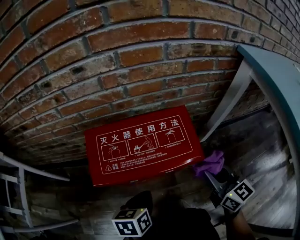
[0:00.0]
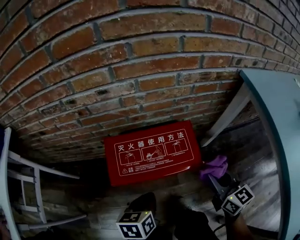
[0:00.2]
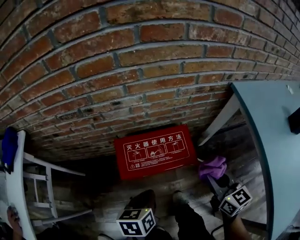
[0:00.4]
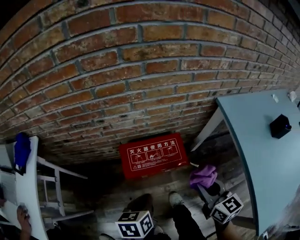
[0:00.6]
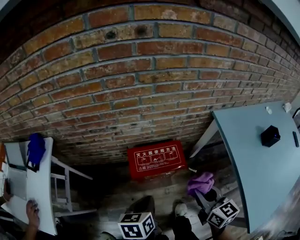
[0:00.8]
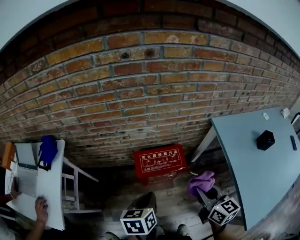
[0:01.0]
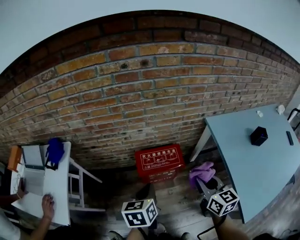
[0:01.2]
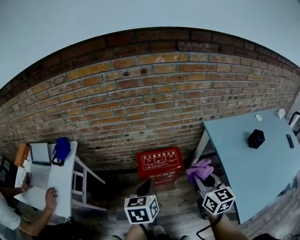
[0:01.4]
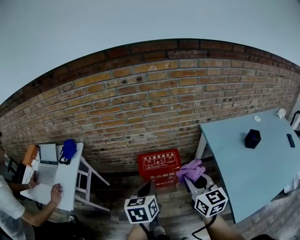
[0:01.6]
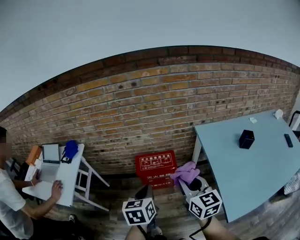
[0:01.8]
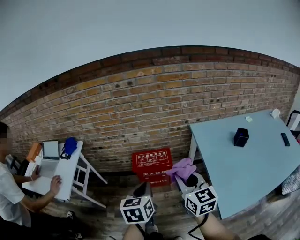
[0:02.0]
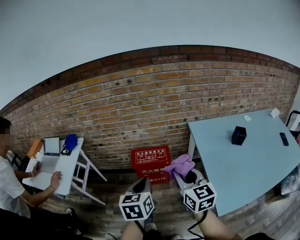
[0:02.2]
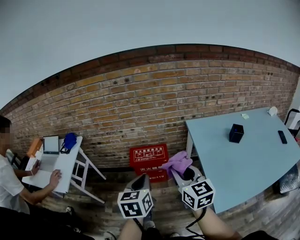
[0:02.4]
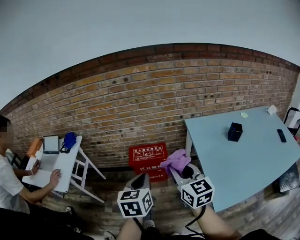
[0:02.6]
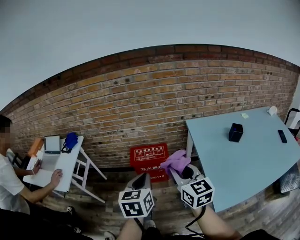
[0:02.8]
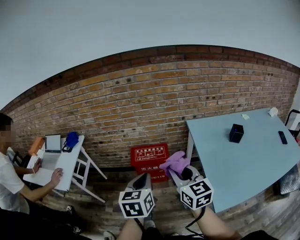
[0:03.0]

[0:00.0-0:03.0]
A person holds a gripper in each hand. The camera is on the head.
0:00.0 to 0:01.6: The left gripper is displaced upward by about 60 cm, and swivels some 20 degrees. The right gripper heads upward and backward, covering some 60 cm.
0:01.6 to 0:03.0: The left gripper travels backward, to the right and upward by about 15 cm. Meanwhile the right gripper moves backward, some 10 cm.

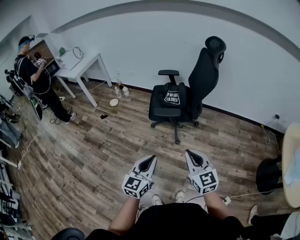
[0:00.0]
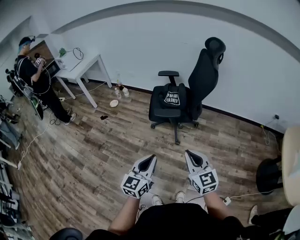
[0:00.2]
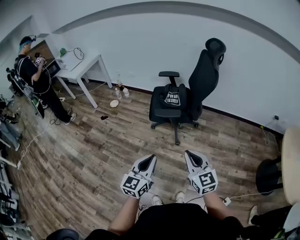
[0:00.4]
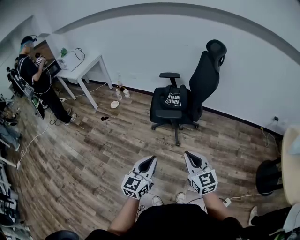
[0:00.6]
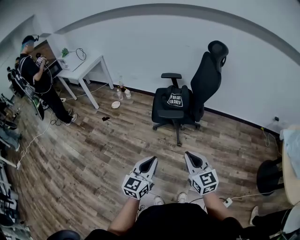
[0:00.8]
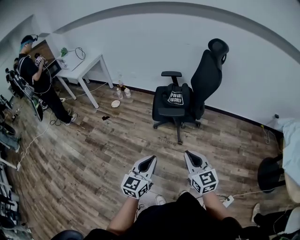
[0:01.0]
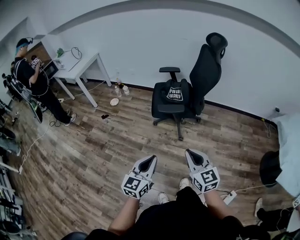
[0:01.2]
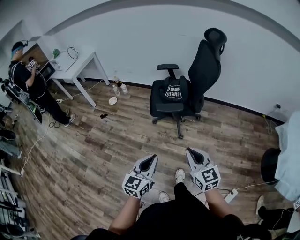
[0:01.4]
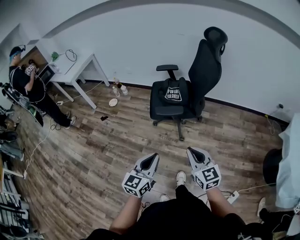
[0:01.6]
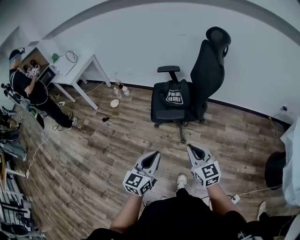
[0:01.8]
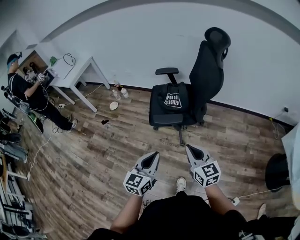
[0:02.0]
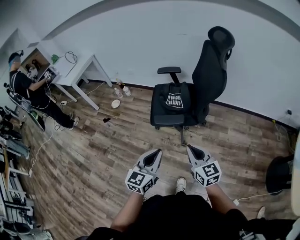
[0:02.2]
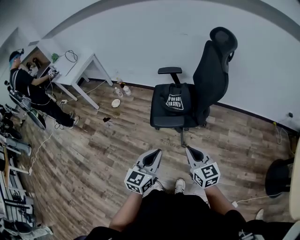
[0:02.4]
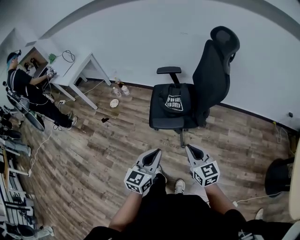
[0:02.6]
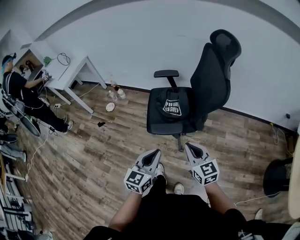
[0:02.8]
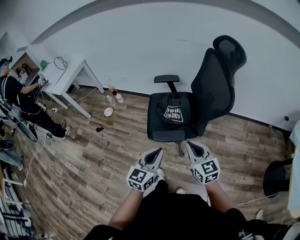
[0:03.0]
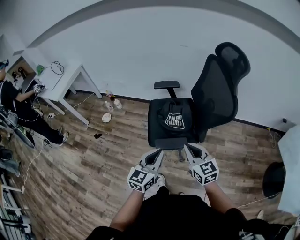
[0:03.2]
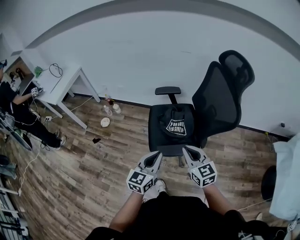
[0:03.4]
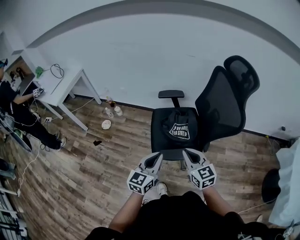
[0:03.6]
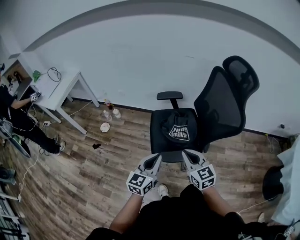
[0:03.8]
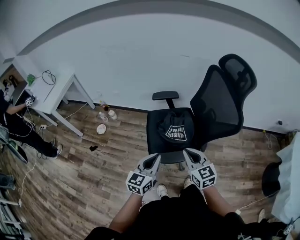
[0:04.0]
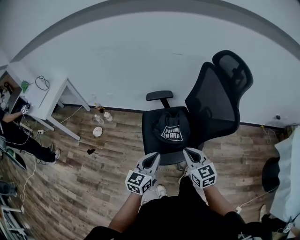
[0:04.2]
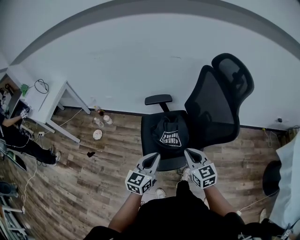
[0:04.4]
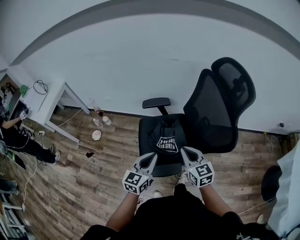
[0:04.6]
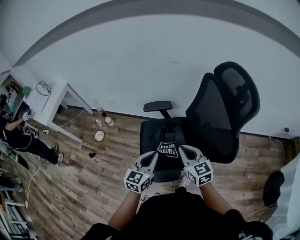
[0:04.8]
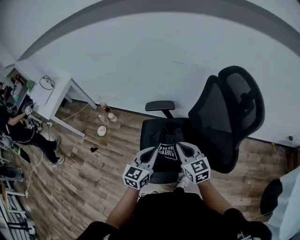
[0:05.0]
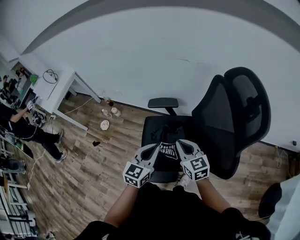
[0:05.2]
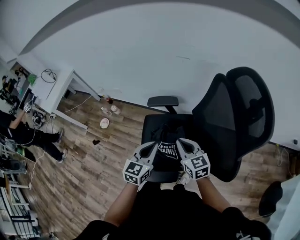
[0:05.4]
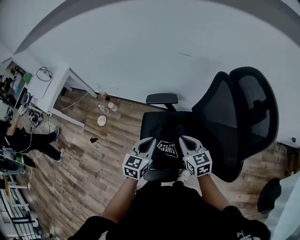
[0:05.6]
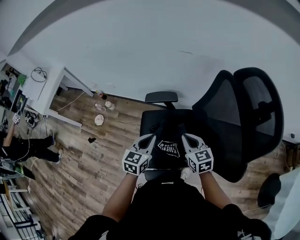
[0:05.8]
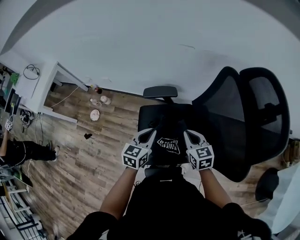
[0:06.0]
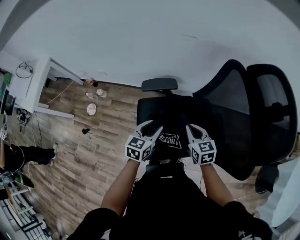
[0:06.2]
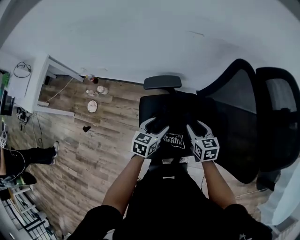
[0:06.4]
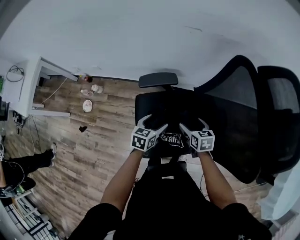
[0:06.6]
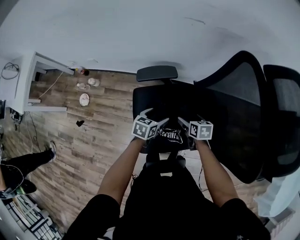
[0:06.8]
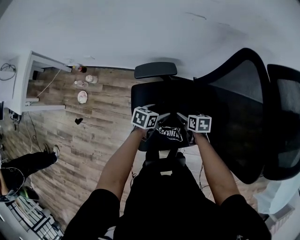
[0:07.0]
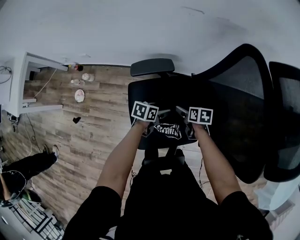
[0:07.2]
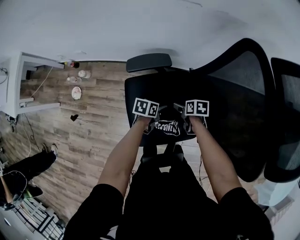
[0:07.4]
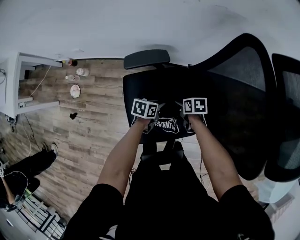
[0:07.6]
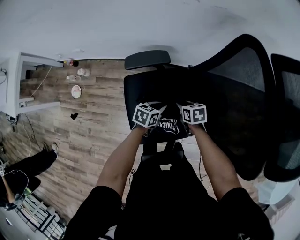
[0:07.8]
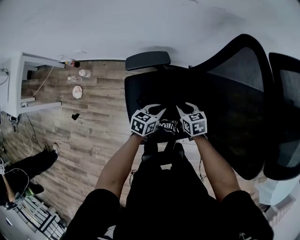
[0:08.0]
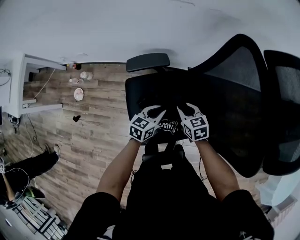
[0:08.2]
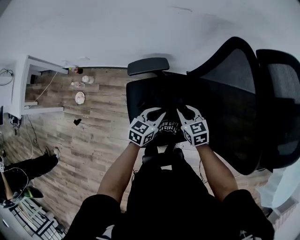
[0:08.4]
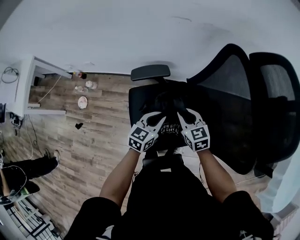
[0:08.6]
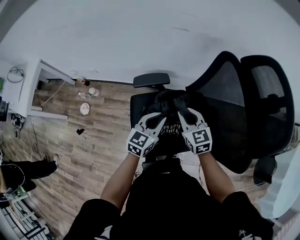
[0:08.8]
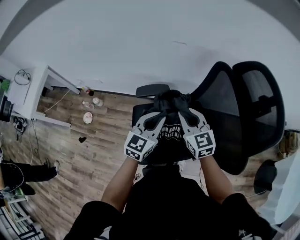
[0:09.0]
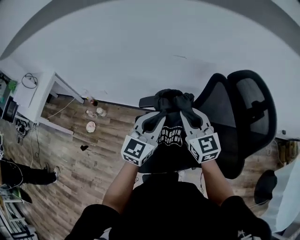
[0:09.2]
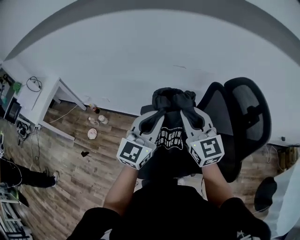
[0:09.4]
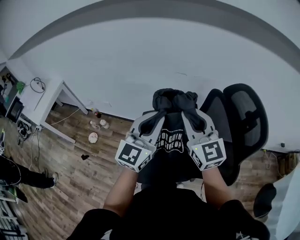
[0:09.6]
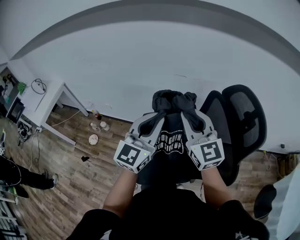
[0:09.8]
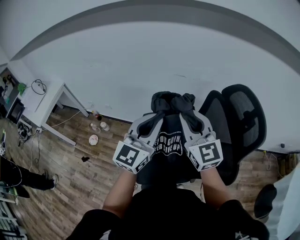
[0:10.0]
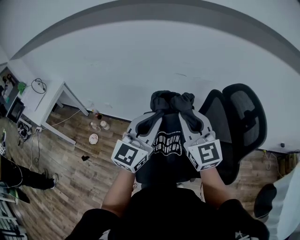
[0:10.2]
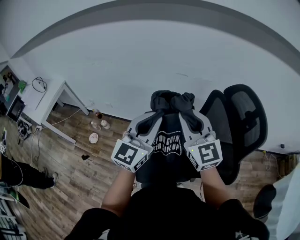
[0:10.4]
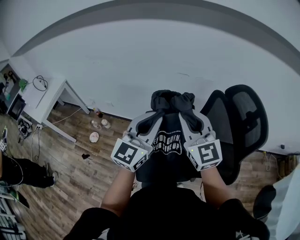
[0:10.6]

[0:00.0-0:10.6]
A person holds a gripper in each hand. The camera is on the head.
0:00.0 to 0:01.6: The right gripper changes place by approximately 5 cm; the left gripper shifts approximately 5 cm forward.
0:01.6 to 0:03.0: The grippers both shift forward by roughly 25 cm.
0:03.0 to 0:04.6: Both grippers move forward, some 20 cm.
0:04.6 to 0:06.0: The two grippers go approximately 20 cm forward and downward.
0:06.0 to 0:07.6: The two grippers go approximately 25 cm downward. The left gripper rotates about 40 degrees, and opens, then closes again; the right gripper tilts its fingers approximately 30 degrees downward, and opens its fingers.
0:07.6 to 0:09.0: Both grippers move upward, some 35 cm. The right gripper tilts its fingers approximately 50 degrees upward, and closes its fingers. Meanwhile the left gripper tilts its fingers some 30 degrees upward.
0:09.0 to 0:10.6: The grippers both shift upward by some 20 cm. The left gripper swivels some 20 degrees; the right gripper turns by some 20 degrees.

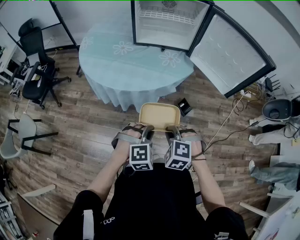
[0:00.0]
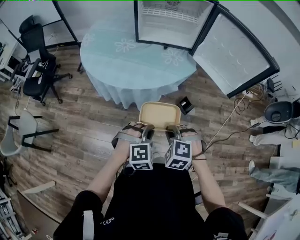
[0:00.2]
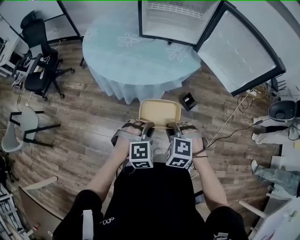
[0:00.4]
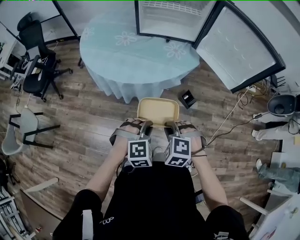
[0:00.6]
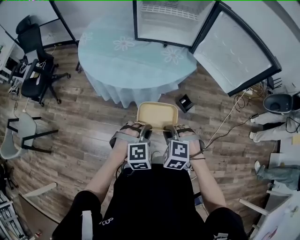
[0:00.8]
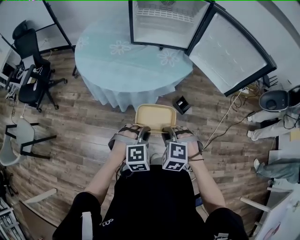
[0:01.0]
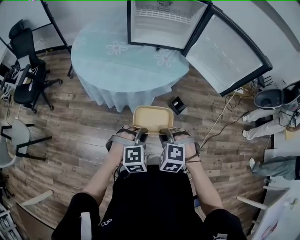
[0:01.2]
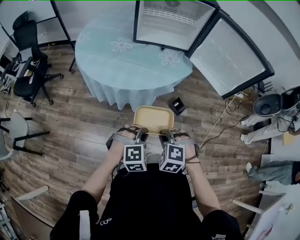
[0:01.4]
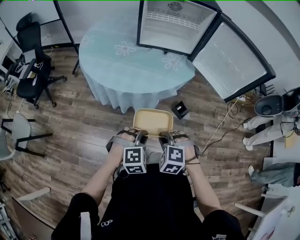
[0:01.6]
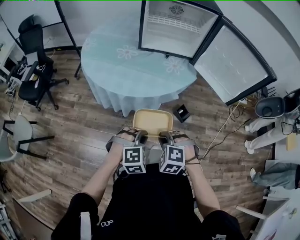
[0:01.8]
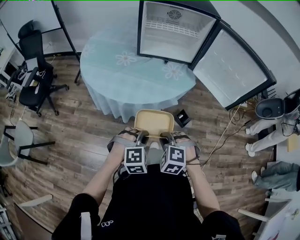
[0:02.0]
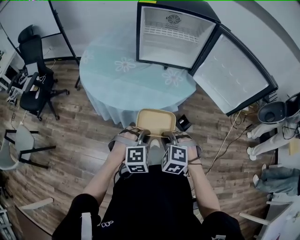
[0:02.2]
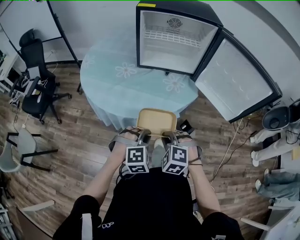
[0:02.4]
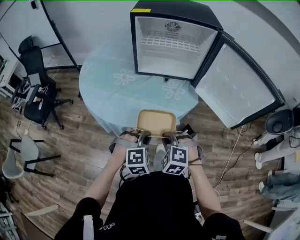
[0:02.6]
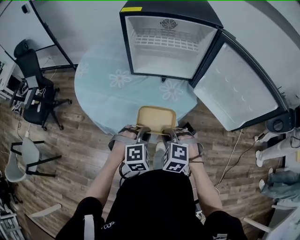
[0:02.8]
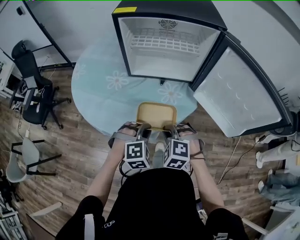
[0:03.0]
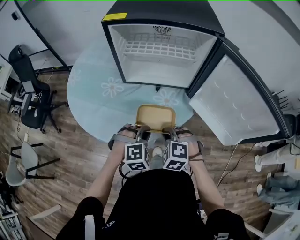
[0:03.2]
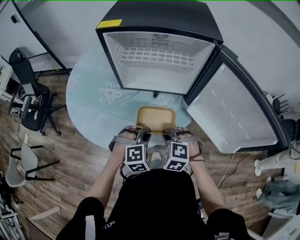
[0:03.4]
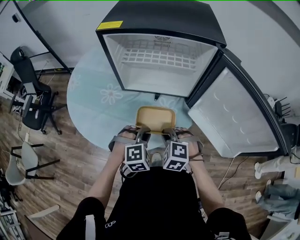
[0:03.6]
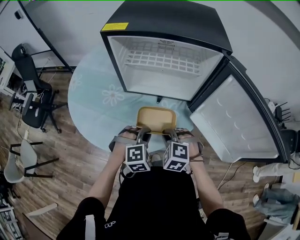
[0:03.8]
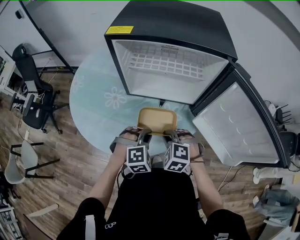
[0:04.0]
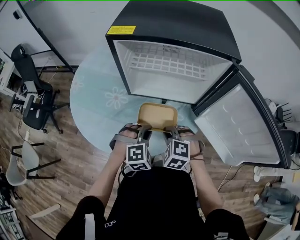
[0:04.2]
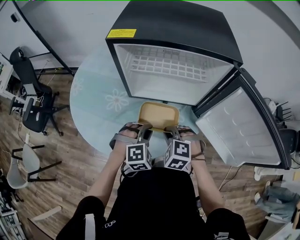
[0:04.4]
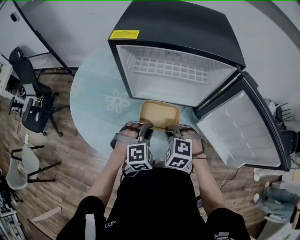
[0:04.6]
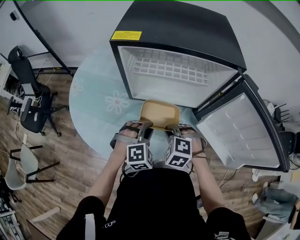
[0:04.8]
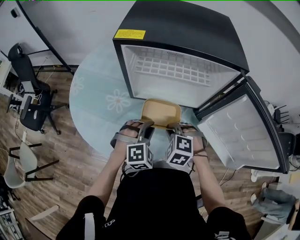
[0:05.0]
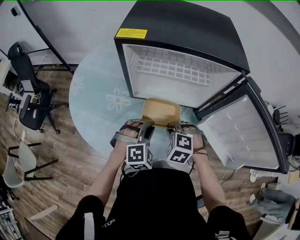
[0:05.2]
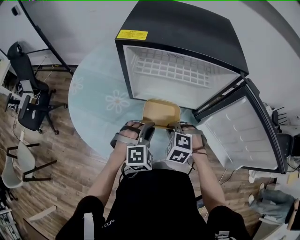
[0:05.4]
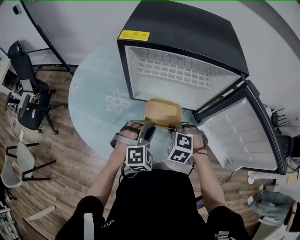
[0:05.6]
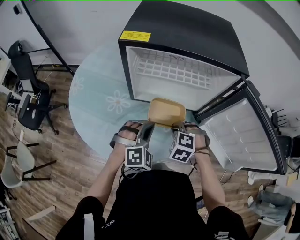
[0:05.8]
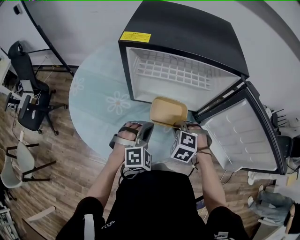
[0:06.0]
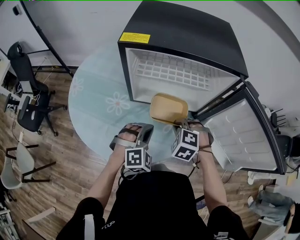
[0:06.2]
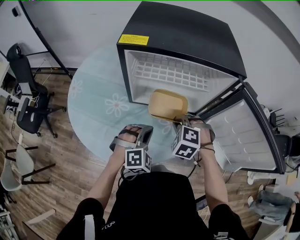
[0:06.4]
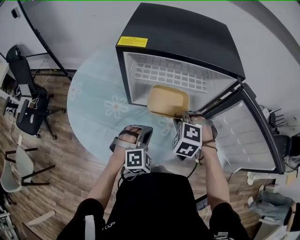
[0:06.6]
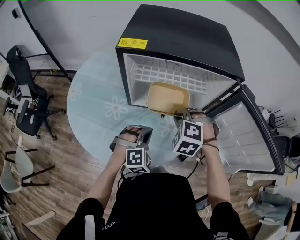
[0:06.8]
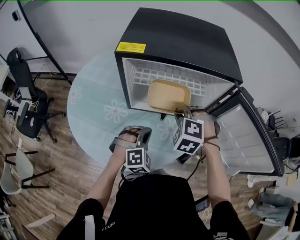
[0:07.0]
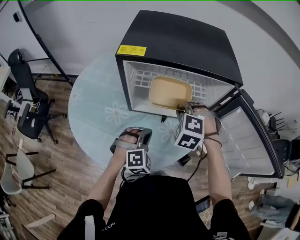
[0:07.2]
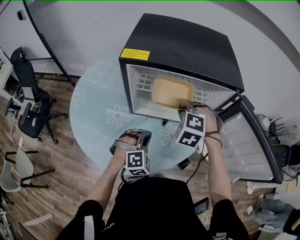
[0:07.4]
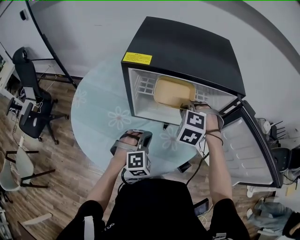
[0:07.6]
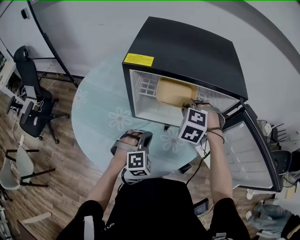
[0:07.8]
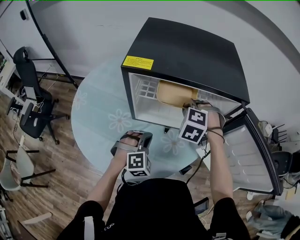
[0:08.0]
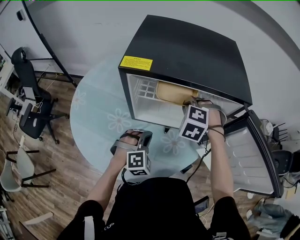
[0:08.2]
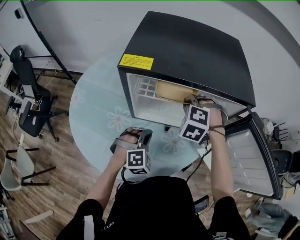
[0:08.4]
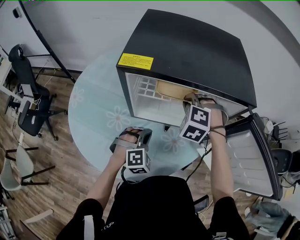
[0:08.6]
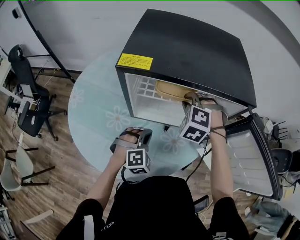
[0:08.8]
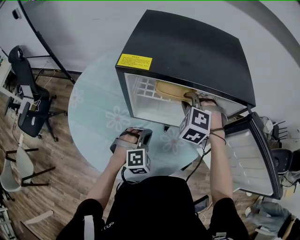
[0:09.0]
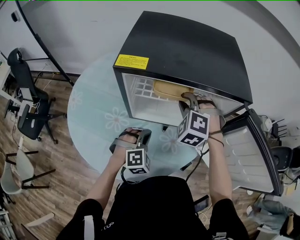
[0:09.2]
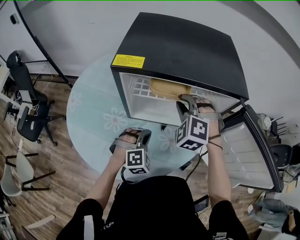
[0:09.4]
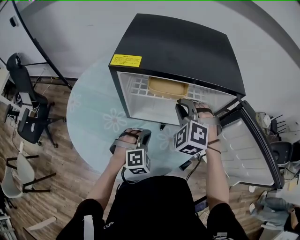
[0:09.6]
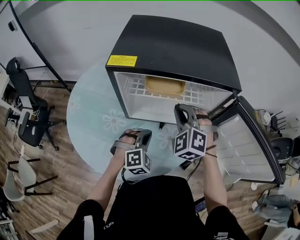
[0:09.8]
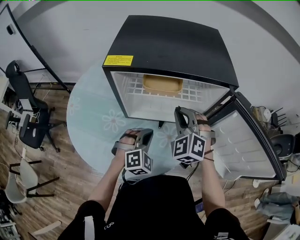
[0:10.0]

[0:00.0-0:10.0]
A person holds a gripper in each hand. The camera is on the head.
0:00.0 to 0:01.4: The grippers stay close to where they were, moving slightly.
0:01.4 to 0:02.8: Both grippers travel together forward, approximately 25 cm.
0:02.8 to 0:04.2: Both grippers move forward, some 20 cm.
0:04.2 to 0:05.8: The right gripper shifts about 5 cm forward; the left gripper ends up approximately 5 cm from where it was.
0:05.8 to 0:07.2: The right gripper is displaced upward and forward by roughly 15 cm.
0:07.2 to 0:08.6: The right gripper shifts some 10 cm forward; the left gripper travels forward by roughly 5 cm.
0:08.6 to 0:10.0: The right gripper goes approximately 10 cm backward, and changes its angle by about 30 degrees. The left gripper shifts by some 5 cm.
